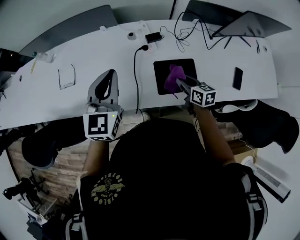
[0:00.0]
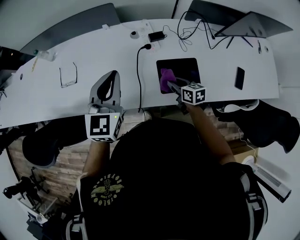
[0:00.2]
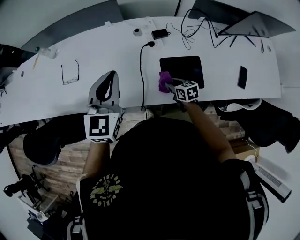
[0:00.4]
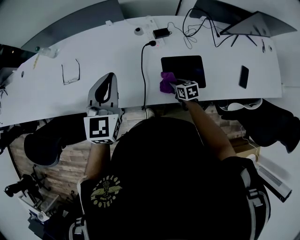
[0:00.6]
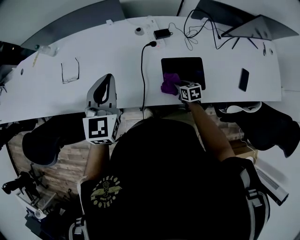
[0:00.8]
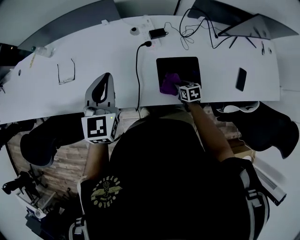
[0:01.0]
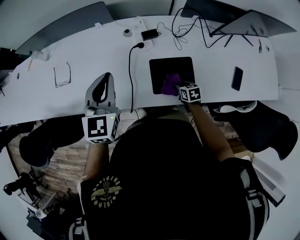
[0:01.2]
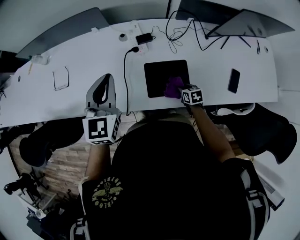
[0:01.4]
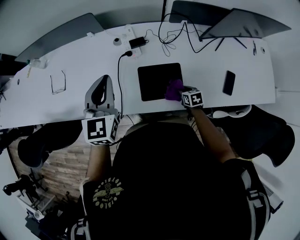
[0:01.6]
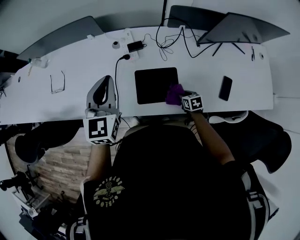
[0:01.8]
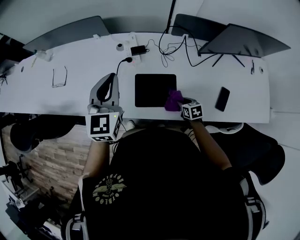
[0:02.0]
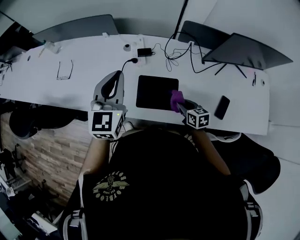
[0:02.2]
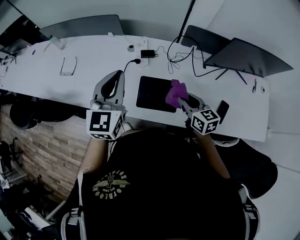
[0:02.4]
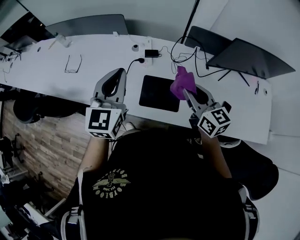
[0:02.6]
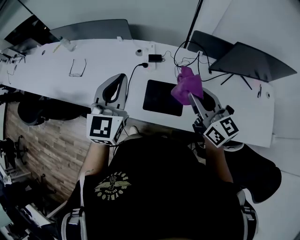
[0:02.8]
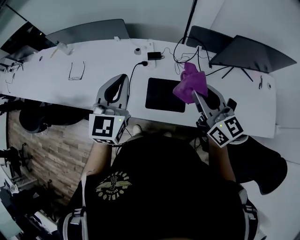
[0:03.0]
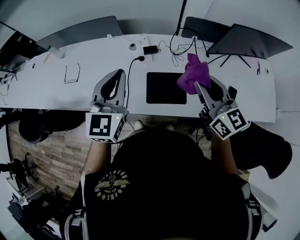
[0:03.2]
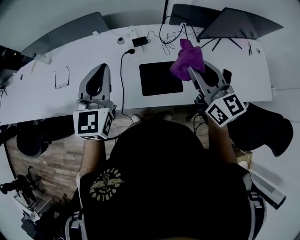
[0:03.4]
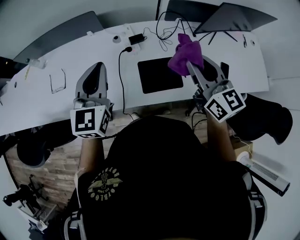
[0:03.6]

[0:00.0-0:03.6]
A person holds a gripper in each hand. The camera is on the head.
0.0 to 1.8 s: The left gripper heads to the right, covering about 10 cm, while the right gripper moves downward and to the right, roughly 20 cm, and swivels roughly 30 degrees.
1.8 to 3.6 s: The left gripper travels to the left and upward by about 10 cm, while the right gripper goes about 40 cm upward, and angles its fingers upward, by approximately 50 degrees.

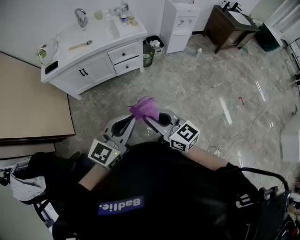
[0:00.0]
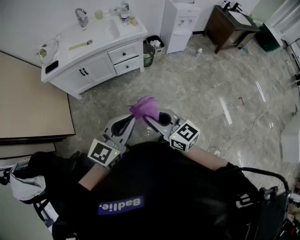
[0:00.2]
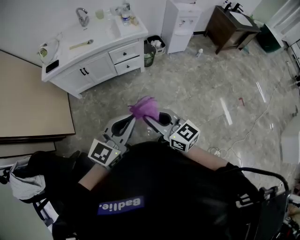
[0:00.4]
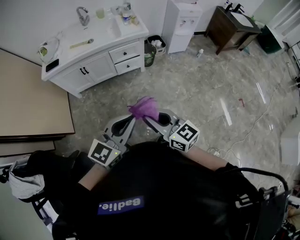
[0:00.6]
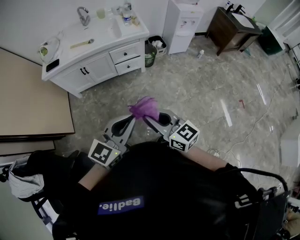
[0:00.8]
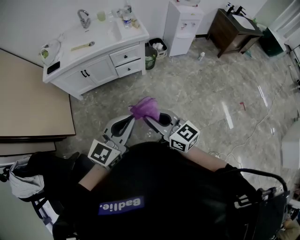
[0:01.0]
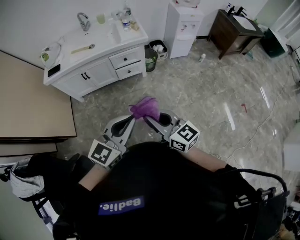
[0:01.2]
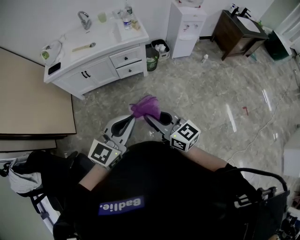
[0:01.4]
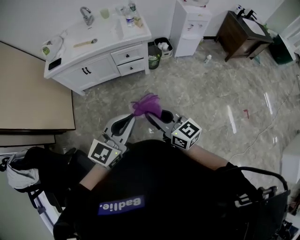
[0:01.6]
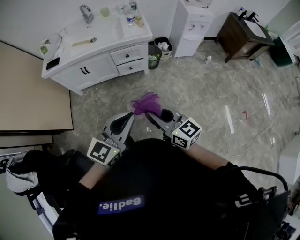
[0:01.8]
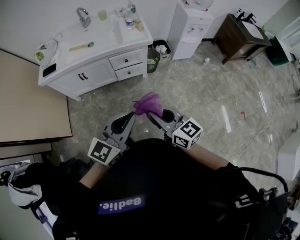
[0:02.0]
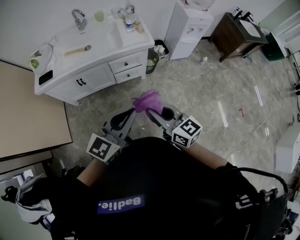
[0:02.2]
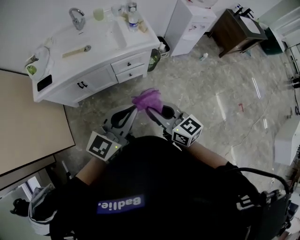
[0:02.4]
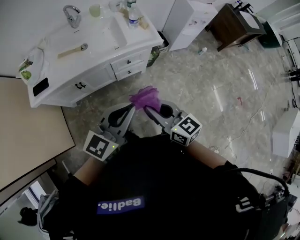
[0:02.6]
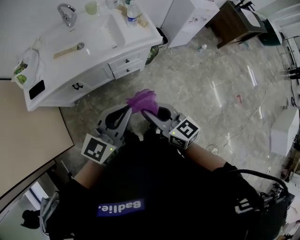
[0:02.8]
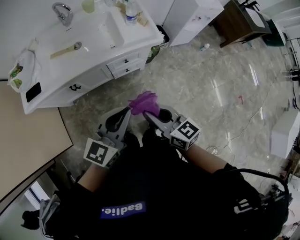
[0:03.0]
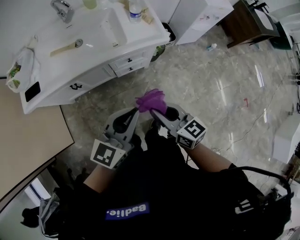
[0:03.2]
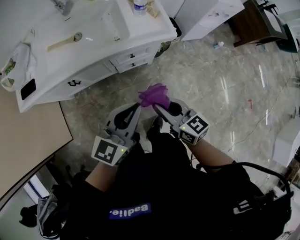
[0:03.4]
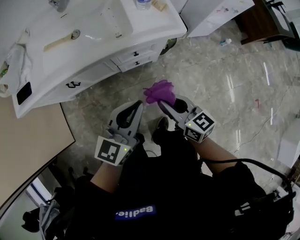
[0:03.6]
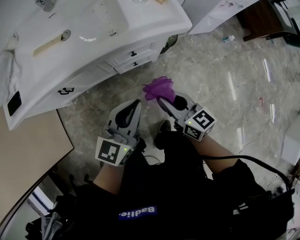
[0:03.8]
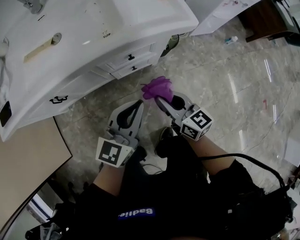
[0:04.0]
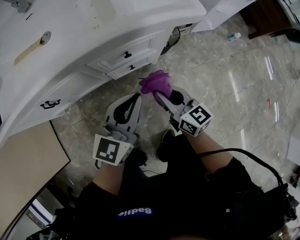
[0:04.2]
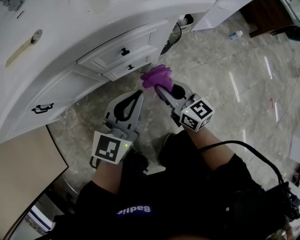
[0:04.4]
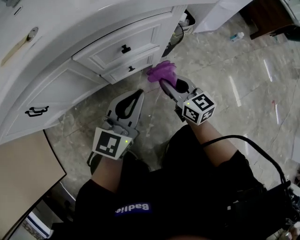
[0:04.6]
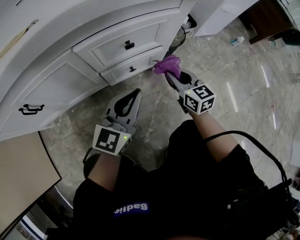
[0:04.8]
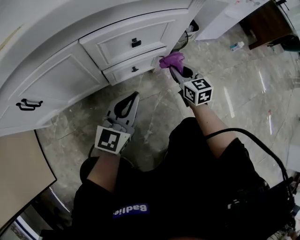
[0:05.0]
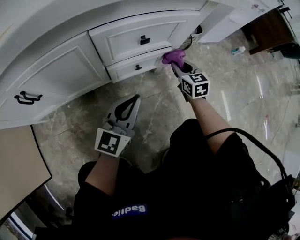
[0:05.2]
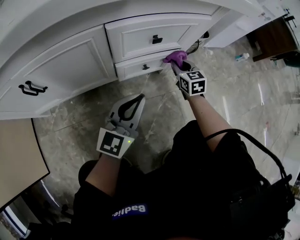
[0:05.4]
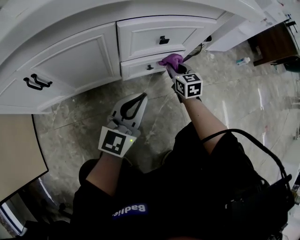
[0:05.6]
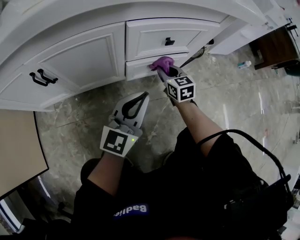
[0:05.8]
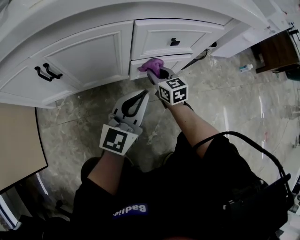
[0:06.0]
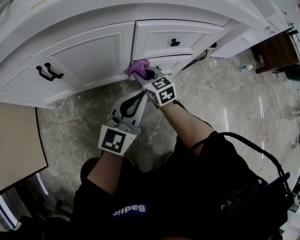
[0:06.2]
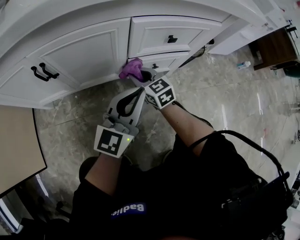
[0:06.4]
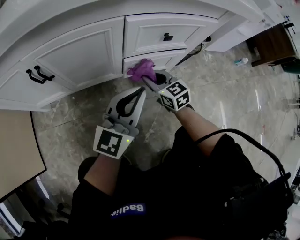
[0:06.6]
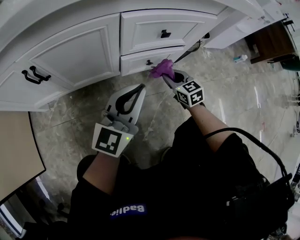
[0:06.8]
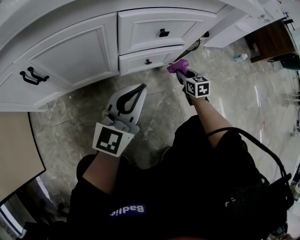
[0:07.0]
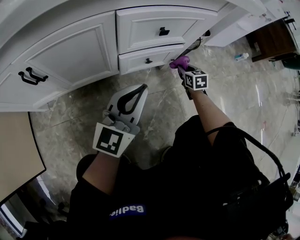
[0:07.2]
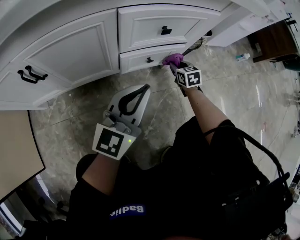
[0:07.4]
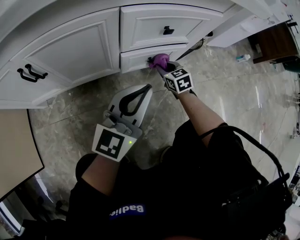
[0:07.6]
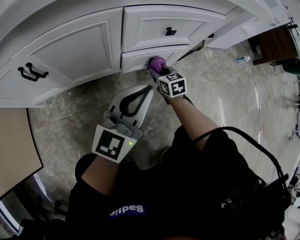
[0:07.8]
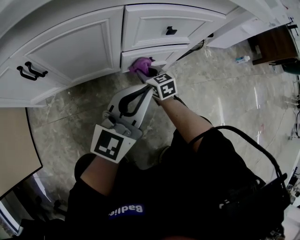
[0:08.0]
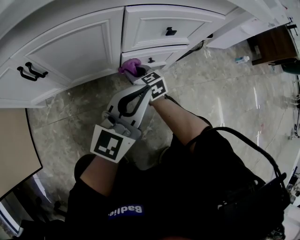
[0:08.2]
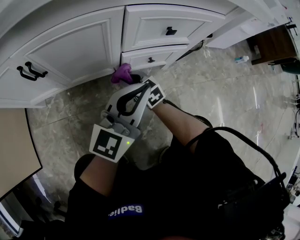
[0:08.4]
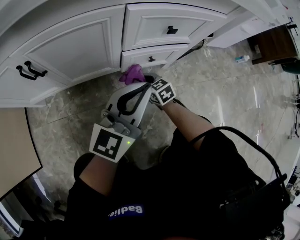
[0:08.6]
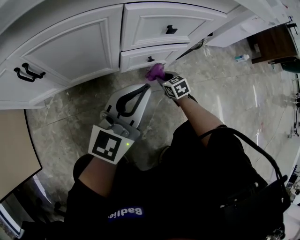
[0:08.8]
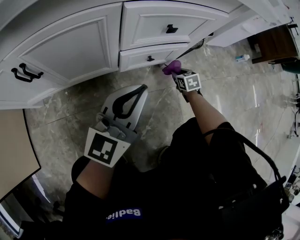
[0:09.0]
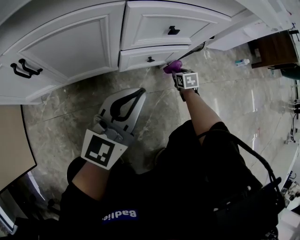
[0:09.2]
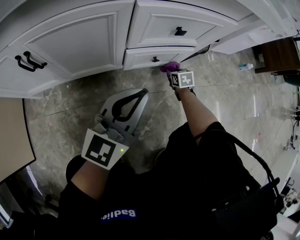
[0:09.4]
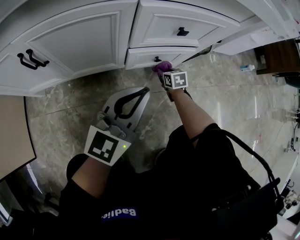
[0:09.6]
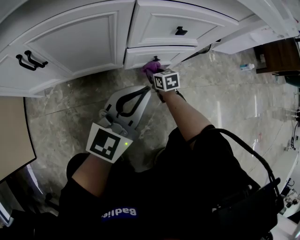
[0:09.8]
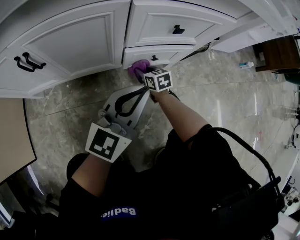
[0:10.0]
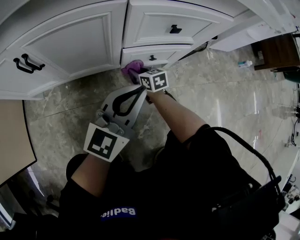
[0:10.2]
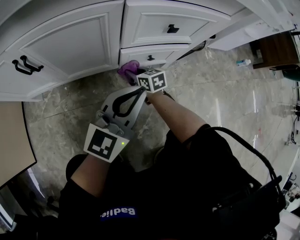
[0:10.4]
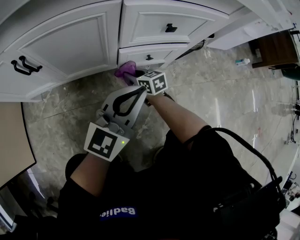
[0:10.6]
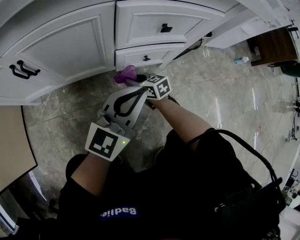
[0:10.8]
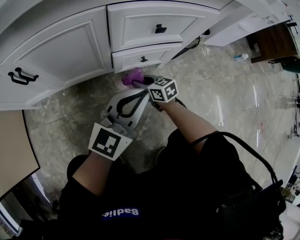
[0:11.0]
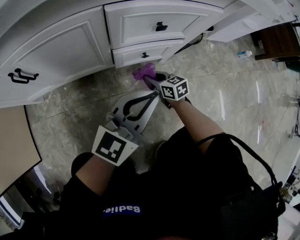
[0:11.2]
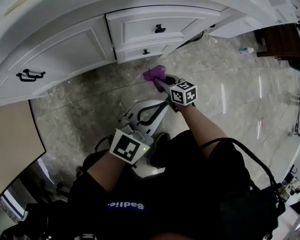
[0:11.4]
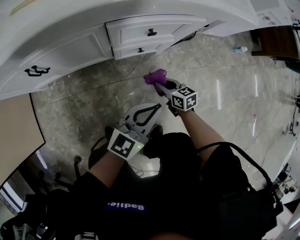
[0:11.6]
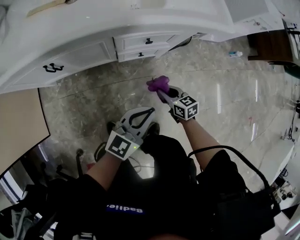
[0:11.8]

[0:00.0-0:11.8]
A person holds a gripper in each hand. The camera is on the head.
0.0 to 1.4 s: The grippers both shift to the right by about 5 cm.
1.4 to 3.0 s: Both grippers move forward and to the left, some 35 cm.
3.0 to 4.4 s: Both grippers travel together downward and forward, some 50 cm.
4.4 to 6.0 s: The left gripper shifts some 15 cm downward and to the left; the right gripper is displaced downward, to the left and forward by about 25 cm.
6.0 to 7.4 s: The right gripper goes left and right, approximately 30 cm each way, reversing 2 times.
7.4 to 8.8 s: The right gripper heads backward and downward, covering approximately 10 cm, and reaches roughly 25 cm to the left, then returns.
8.8 to 10.4 s: The right gripper moves to the left, some 15 cm, and turns by some 20 degrees.
10.4 to 11.8 s: The right gripper goes approximately 30 cm upward, backward and to the right. Meanwhile the left gripper shifts approximately 20 cm upward, backward and to the right.

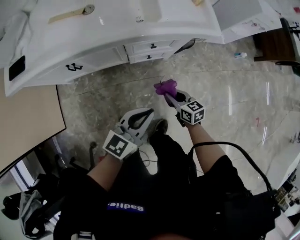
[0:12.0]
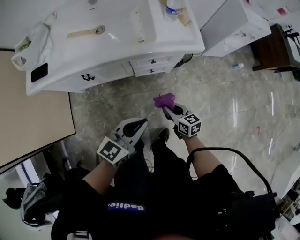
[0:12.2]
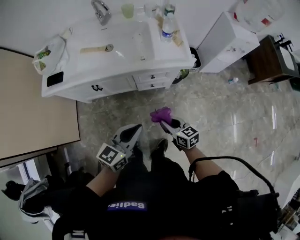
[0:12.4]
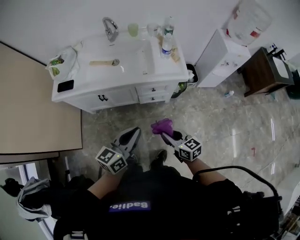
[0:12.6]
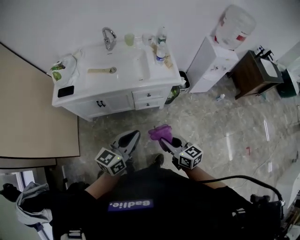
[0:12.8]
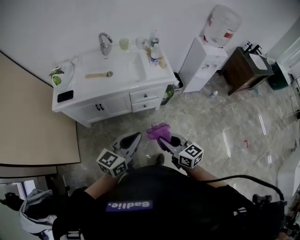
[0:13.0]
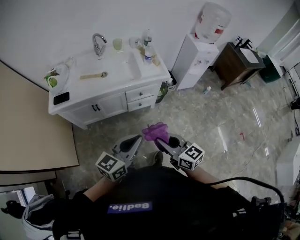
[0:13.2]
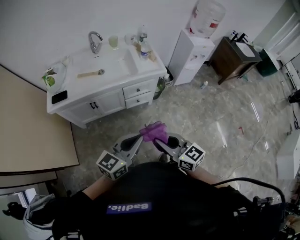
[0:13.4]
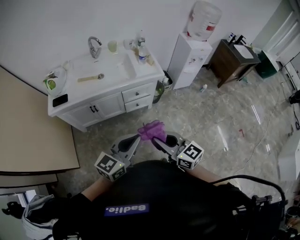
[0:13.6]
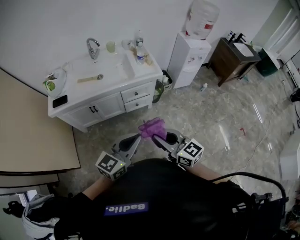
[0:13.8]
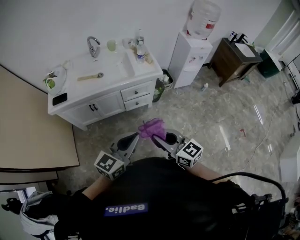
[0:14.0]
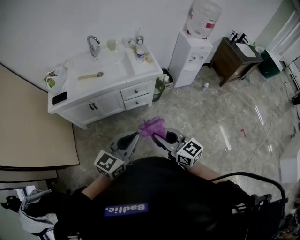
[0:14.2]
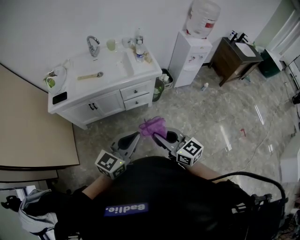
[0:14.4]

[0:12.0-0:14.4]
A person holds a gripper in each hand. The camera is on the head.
12.0 to 13.2 s: The grippers both shift upward and backward by approximately 50 cm. The right gripper swivels about 30 degrees.
13.2 to 14.4 s: The left gripper heads to the right, covering roughly 5 cm. Meanwhile the right gripper moves approximately 5 cm.

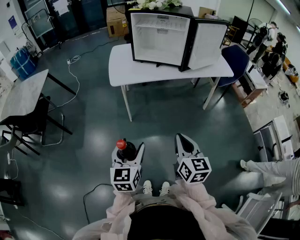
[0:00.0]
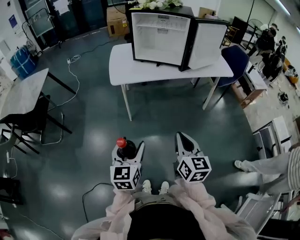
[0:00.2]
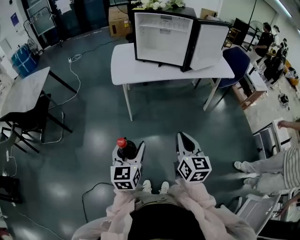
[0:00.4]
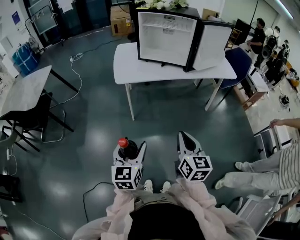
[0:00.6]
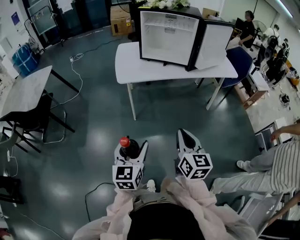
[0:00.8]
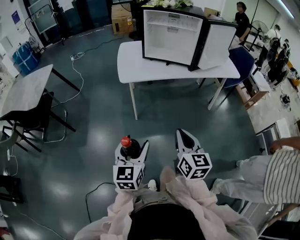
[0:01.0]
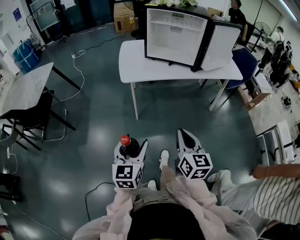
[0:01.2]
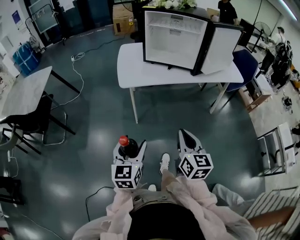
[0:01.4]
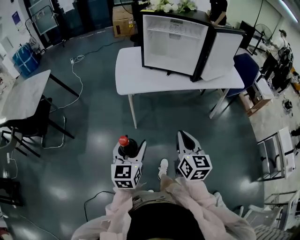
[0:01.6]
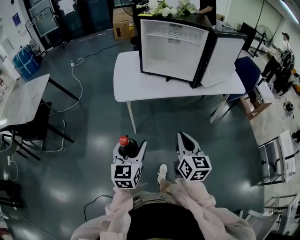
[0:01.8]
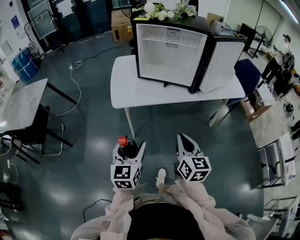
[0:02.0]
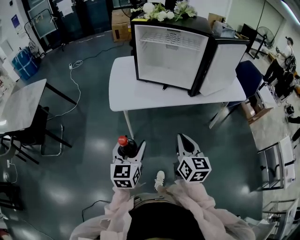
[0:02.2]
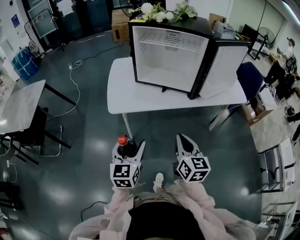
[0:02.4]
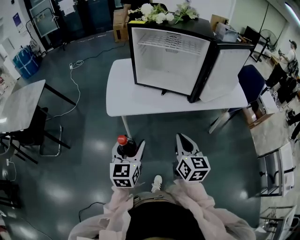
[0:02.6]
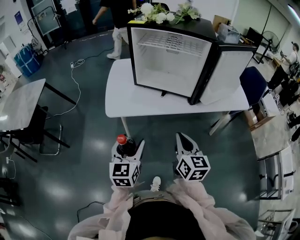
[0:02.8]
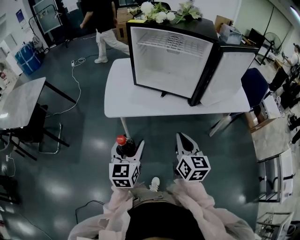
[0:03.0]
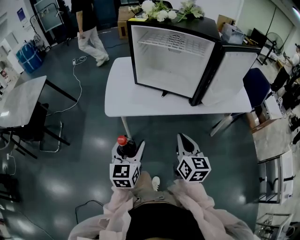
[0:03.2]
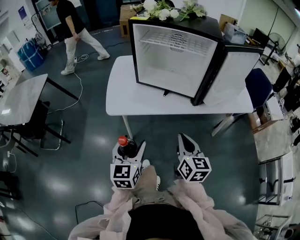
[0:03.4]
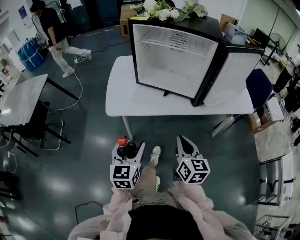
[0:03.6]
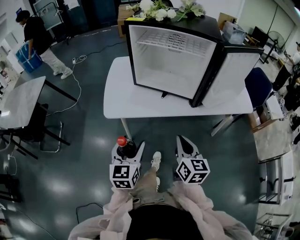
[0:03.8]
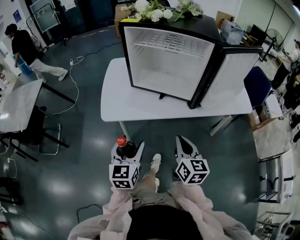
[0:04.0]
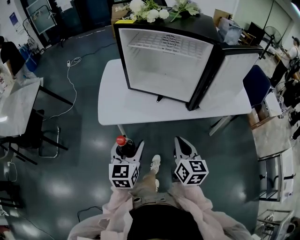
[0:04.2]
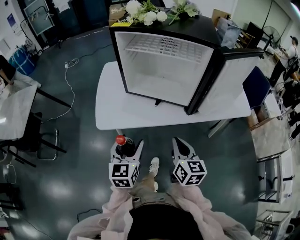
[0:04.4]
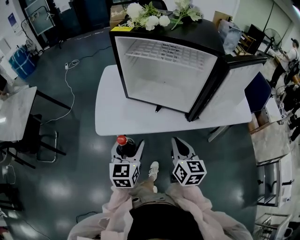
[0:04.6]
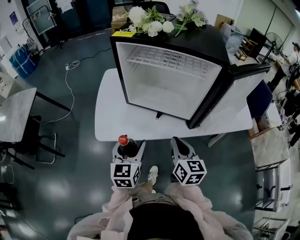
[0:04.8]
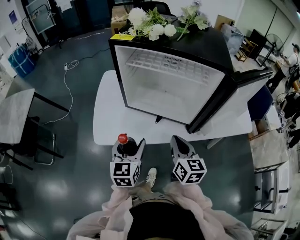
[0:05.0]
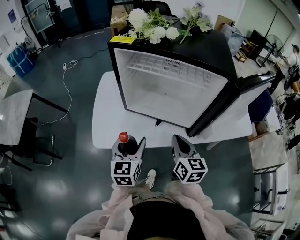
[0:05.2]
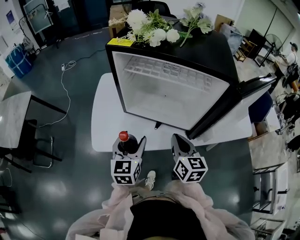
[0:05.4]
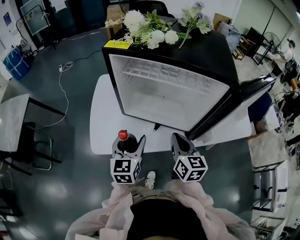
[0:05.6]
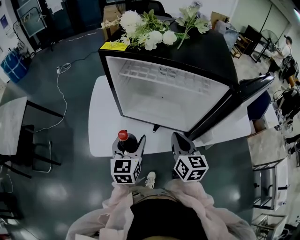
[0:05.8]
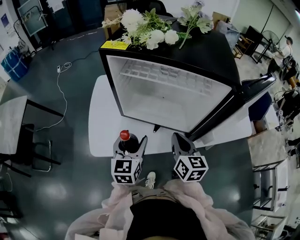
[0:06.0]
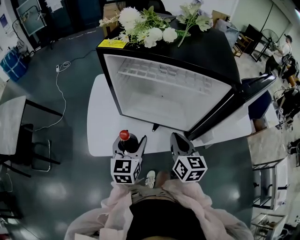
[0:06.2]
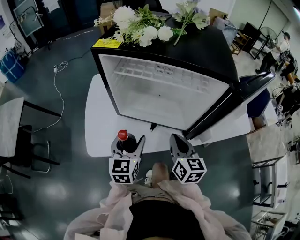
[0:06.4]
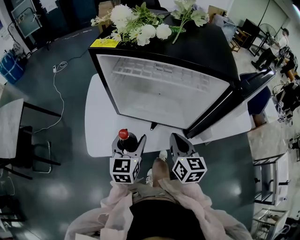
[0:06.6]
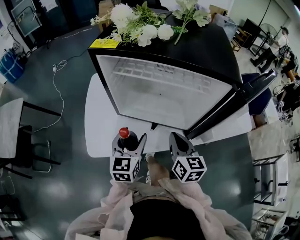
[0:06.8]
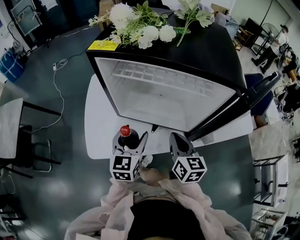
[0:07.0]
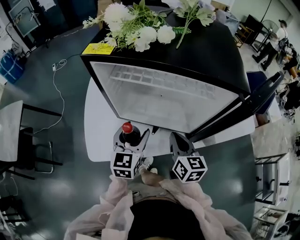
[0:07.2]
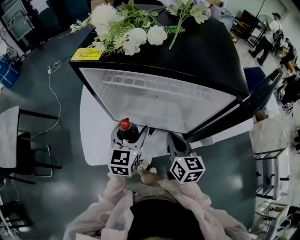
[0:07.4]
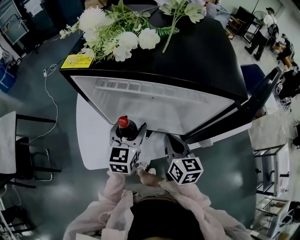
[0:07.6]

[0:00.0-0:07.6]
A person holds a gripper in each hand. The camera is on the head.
0.0 to 1.6 s: Both grippers move forward, approximately 10 cm.
1.6 to 3.0 s: The two grippers go roughly 20 cm forward and to the right.
3.0 to 4.6 s: The two grippers go about 15 cm forward.
4.6 to 6.0 s: Both grippers move forward, some 15 cm.
6.0 to 7.6 s: The right gripper shifts by approximately 5 cm. The left gripper is displaced forward by some 10 cm.
